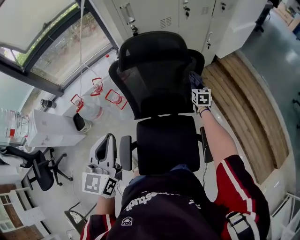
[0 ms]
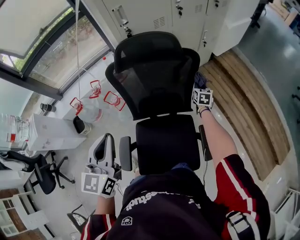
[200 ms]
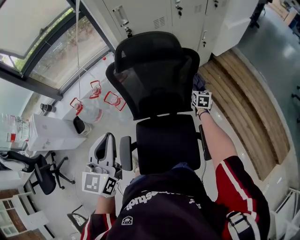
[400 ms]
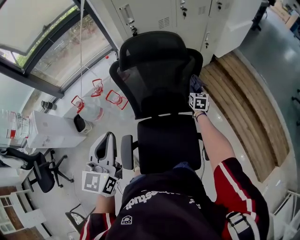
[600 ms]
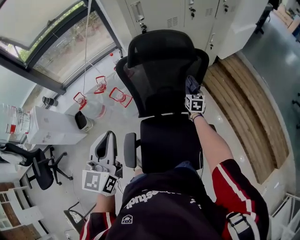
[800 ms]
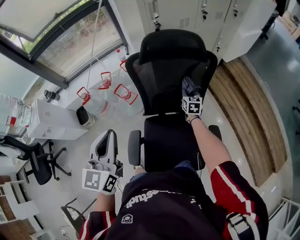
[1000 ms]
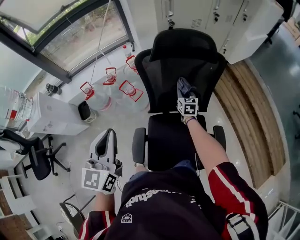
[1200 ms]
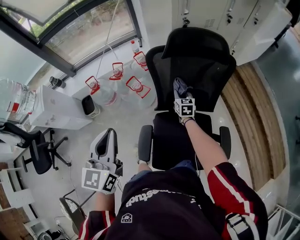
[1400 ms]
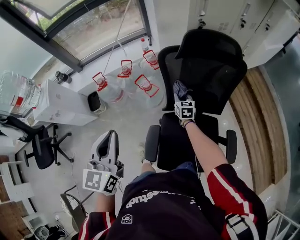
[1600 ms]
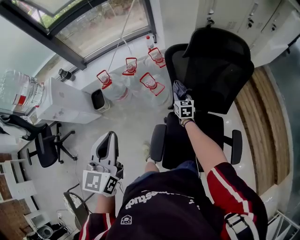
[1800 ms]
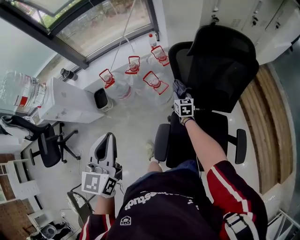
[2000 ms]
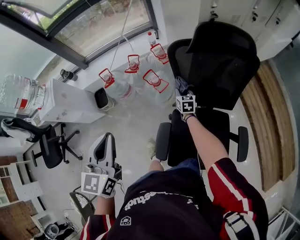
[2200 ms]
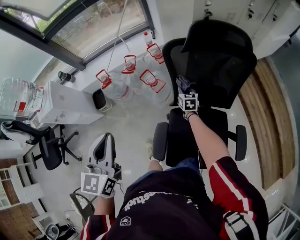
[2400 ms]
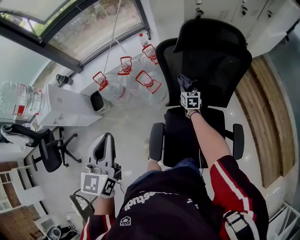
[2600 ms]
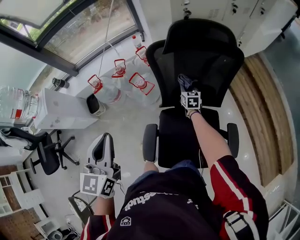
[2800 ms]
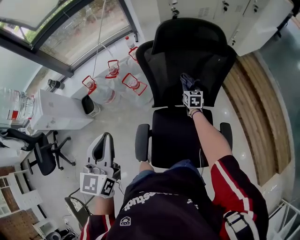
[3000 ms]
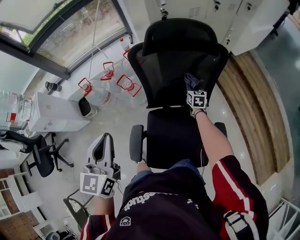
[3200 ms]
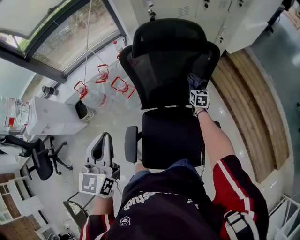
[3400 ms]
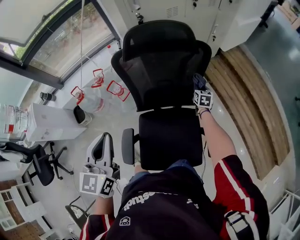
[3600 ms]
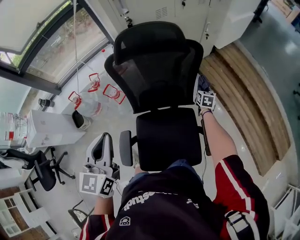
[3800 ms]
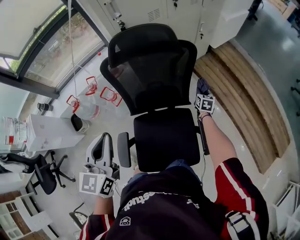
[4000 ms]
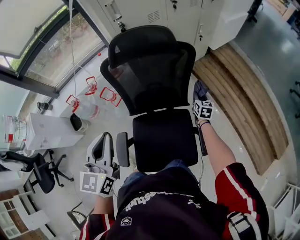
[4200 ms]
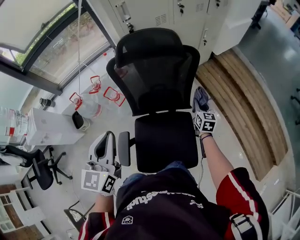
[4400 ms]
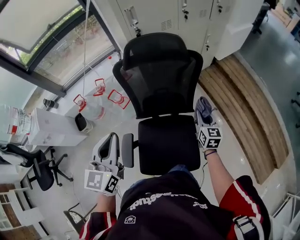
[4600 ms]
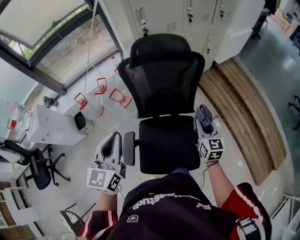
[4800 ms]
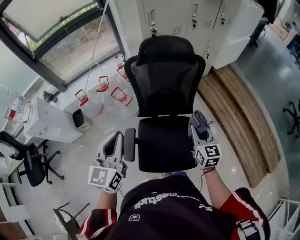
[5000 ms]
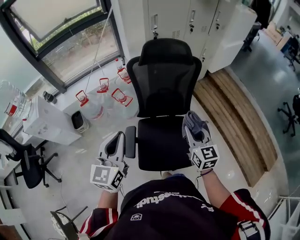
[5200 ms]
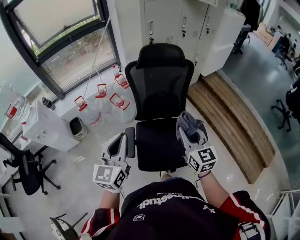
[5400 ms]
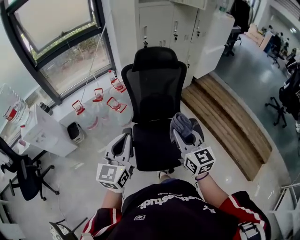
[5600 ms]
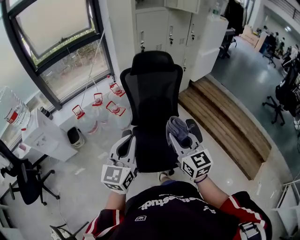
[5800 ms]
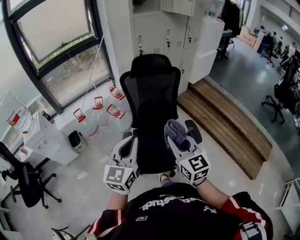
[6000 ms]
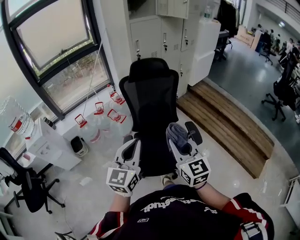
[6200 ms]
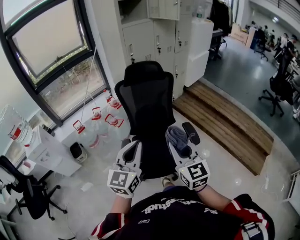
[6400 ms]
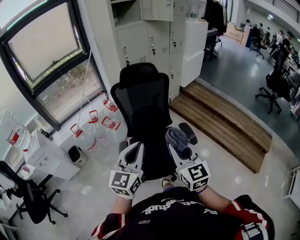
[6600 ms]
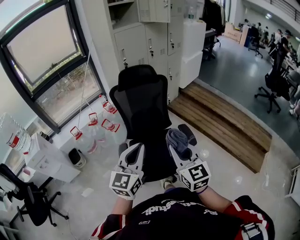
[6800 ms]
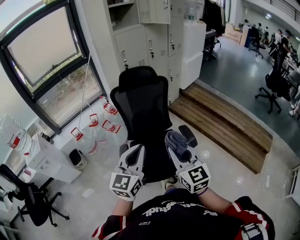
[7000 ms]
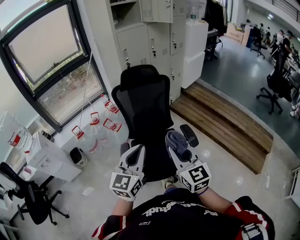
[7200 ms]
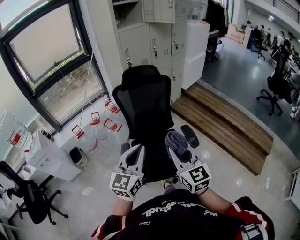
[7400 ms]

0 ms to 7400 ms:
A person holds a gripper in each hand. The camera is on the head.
0 ms to 1400 ms: The left gripper goes about 15 cm to the left; the right gripper is displaced to the left by some 30 cm.
1400 ms to 3000 ms: The right gripper travels to the right and downward by about 10 cm. The left gripper goes to the left and returns, some 10 cm each way.
3000 ms to 4400 ms: The right gripper is displaced to the right and backward by approximately 25 cm; the left gripper is displaced to the right by about 15 cm.
4400 ms to 6000 ms: The right gripper shifts approximately 70 cm backward, upward and to the left, and rotates roughly 30 degrees. The left gripper goes roughly 35 cm backward.
6000 ms to 7400 ms: The right gripper shifts by about 5 cm; the left gripper heads to the right, covering some 5 cm.

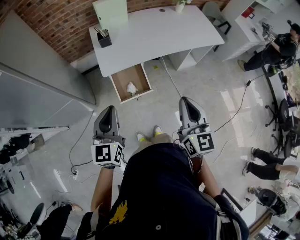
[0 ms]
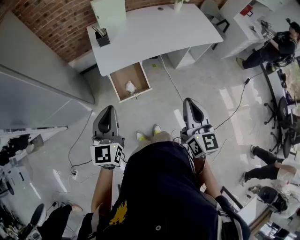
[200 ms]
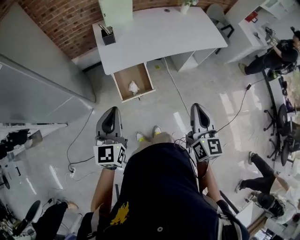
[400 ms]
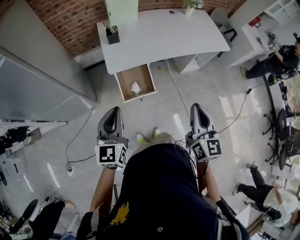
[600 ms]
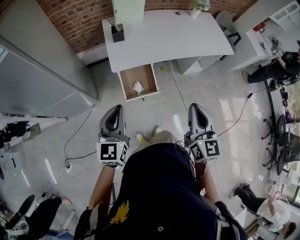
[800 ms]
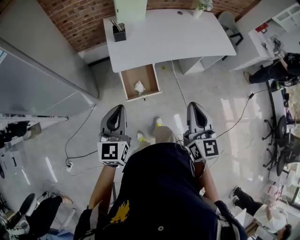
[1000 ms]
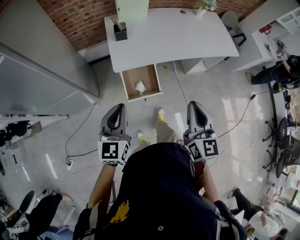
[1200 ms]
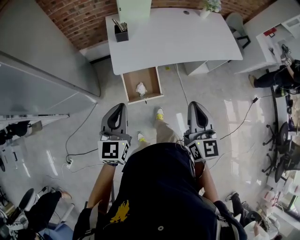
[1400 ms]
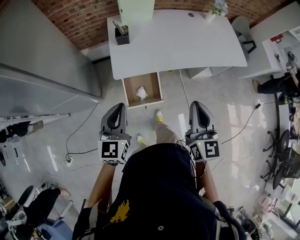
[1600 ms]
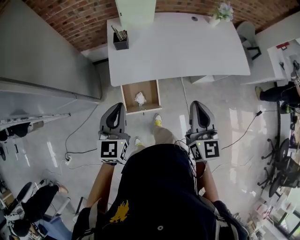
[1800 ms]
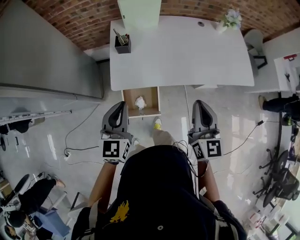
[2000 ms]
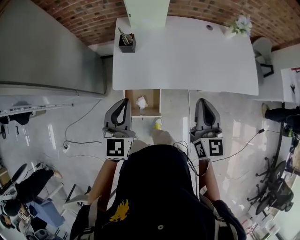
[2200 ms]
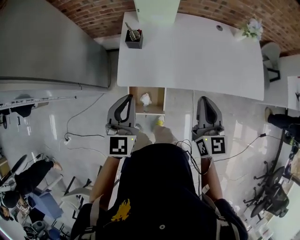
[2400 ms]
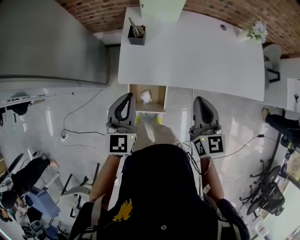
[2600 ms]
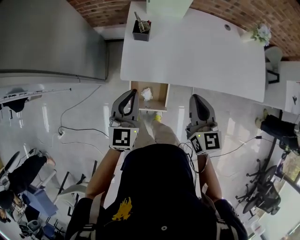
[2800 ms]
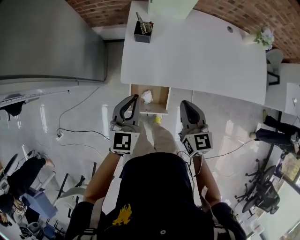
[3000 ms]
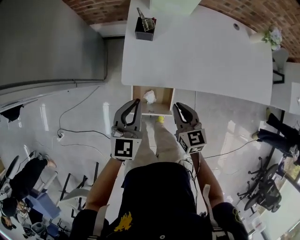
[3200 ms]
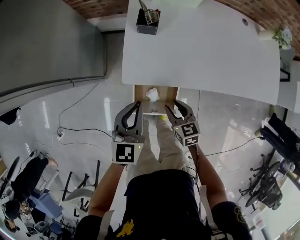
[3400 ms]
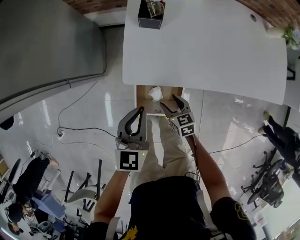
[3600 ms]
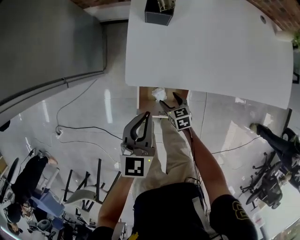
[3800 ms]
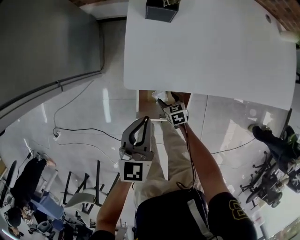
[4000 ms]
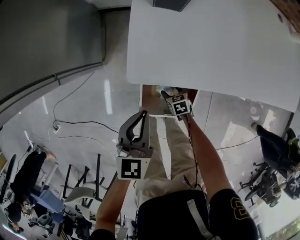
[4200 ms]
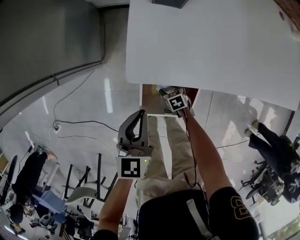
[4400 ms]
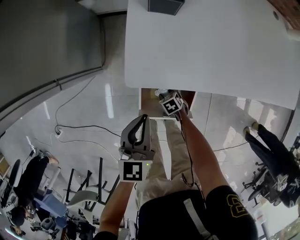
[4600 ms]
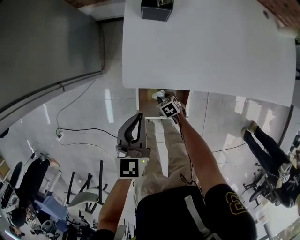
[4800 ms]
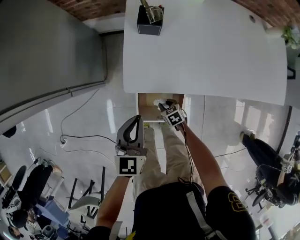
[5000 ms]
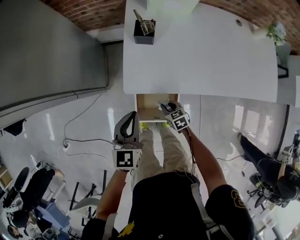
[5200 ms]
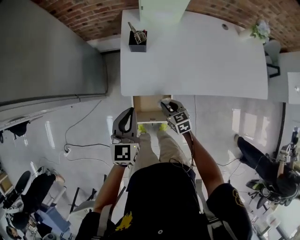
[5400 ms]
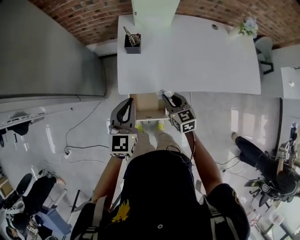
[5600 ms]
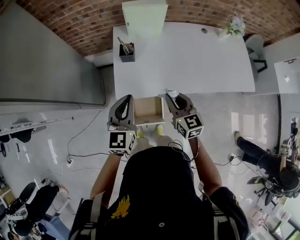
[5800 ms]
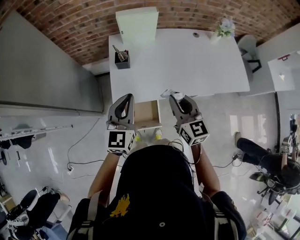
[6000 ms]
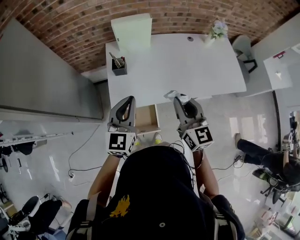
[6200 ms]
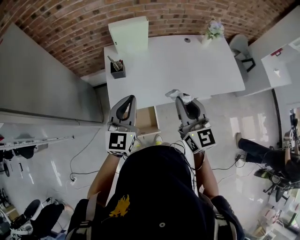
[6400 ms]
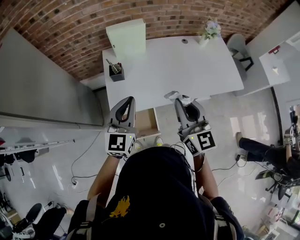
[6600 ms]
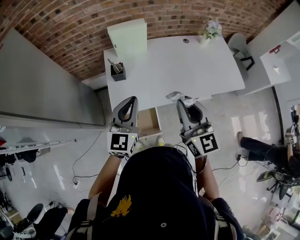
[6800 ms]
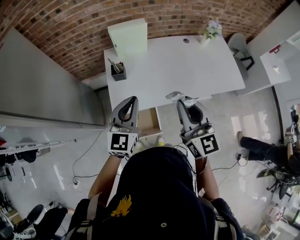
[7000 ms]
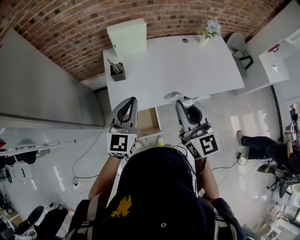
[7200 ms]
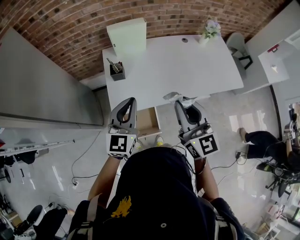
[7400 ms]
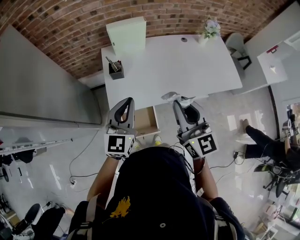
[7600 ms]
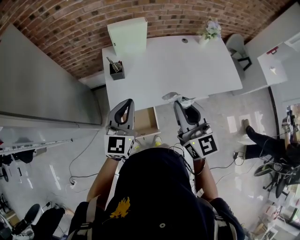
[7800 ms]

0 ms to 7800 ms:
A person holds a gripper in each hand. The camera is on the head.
0 ms to 1600 ms: Both grippers move forward, roughly 15 cm.
1600 ms to 3200 ms: The right gripper is displaced downward and forward by approximately 35 cm, and swivels some 40 degrees; the left gripper goes roughly 20 cm forward and downward.
3200 ms to 4600 ms: The right gripper shifts some 50 cm downward, angles its fingers downward, by about 40 degrees, and opens its fingers, while the left gripper moves downward, roughly 20 cm.
4600 ms to 6200 ms: The right gripper travels upward by about 70 cm, and points its fingers about 60 degrees further upward; the left gripper goes about 35 cm upward, and rotates about 30 degrees.
6200 ms to 7800 ms: The right gripper goes about 10 cm upward.

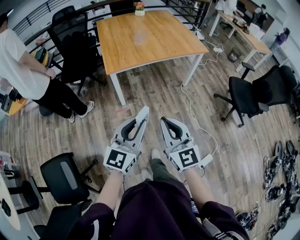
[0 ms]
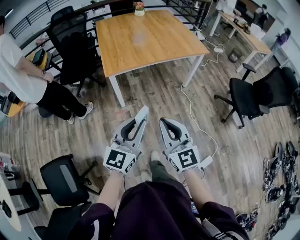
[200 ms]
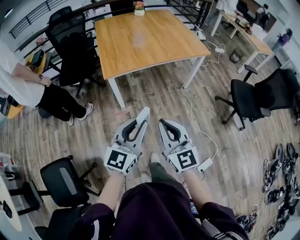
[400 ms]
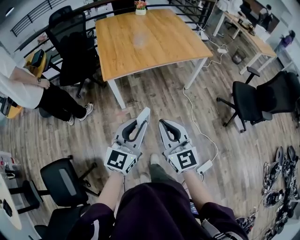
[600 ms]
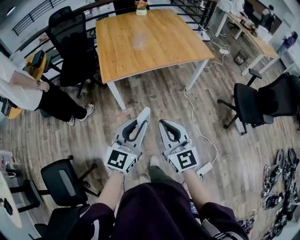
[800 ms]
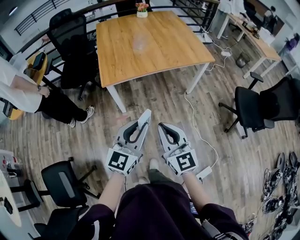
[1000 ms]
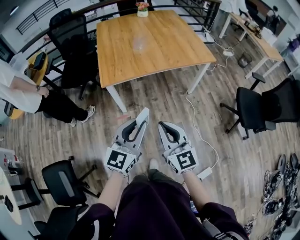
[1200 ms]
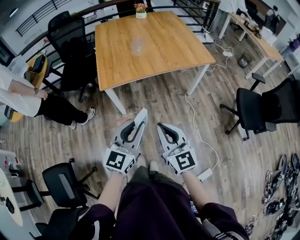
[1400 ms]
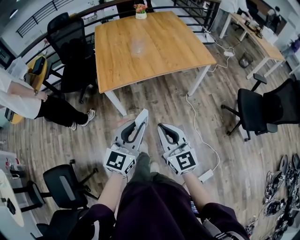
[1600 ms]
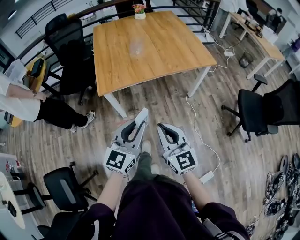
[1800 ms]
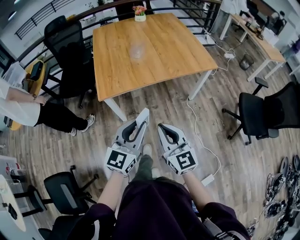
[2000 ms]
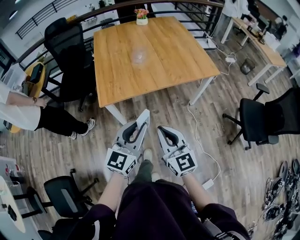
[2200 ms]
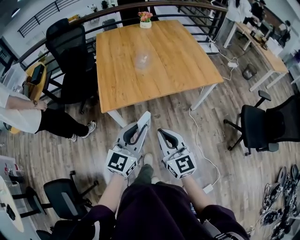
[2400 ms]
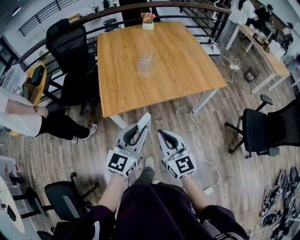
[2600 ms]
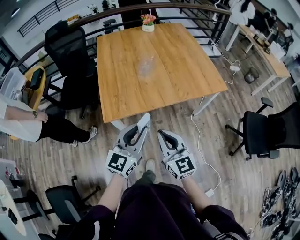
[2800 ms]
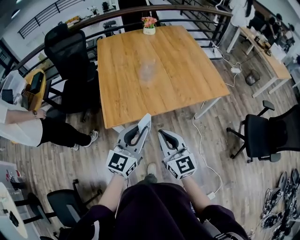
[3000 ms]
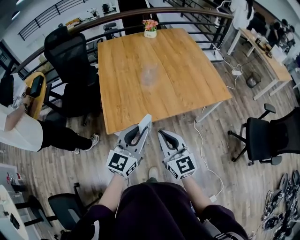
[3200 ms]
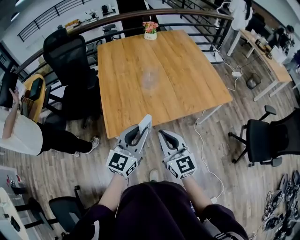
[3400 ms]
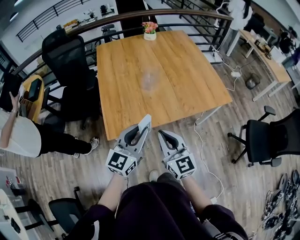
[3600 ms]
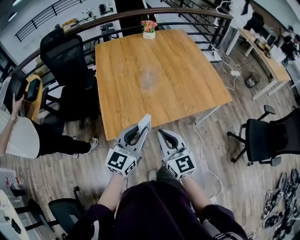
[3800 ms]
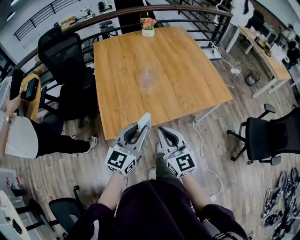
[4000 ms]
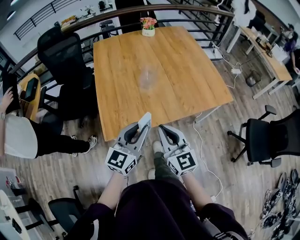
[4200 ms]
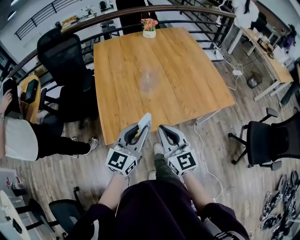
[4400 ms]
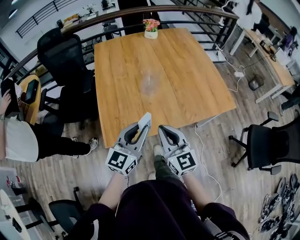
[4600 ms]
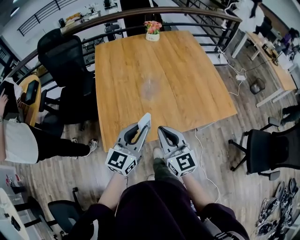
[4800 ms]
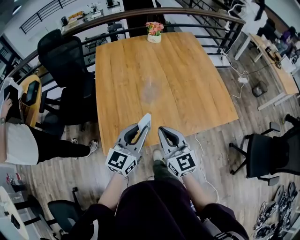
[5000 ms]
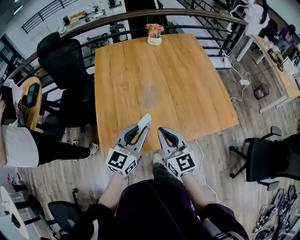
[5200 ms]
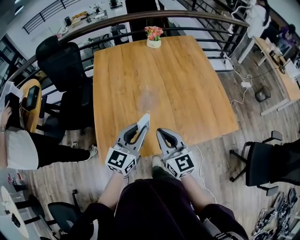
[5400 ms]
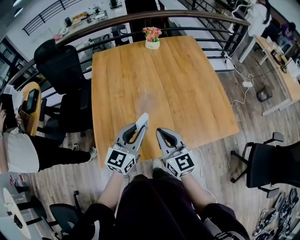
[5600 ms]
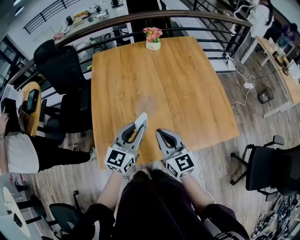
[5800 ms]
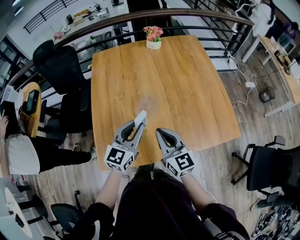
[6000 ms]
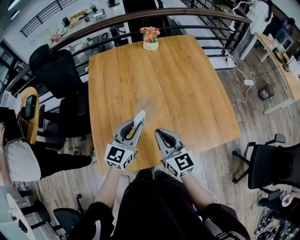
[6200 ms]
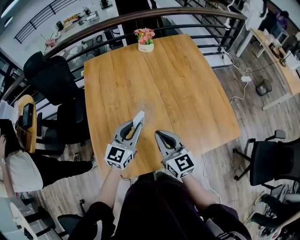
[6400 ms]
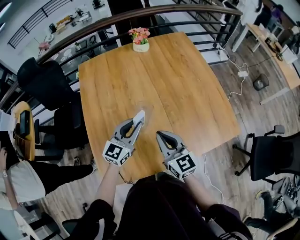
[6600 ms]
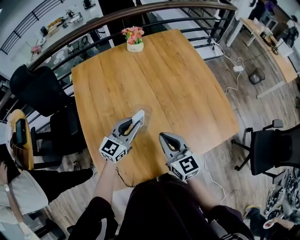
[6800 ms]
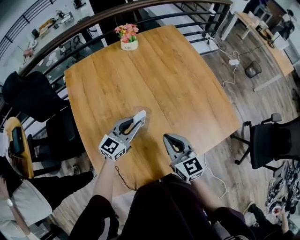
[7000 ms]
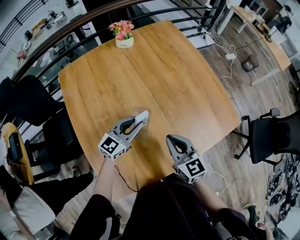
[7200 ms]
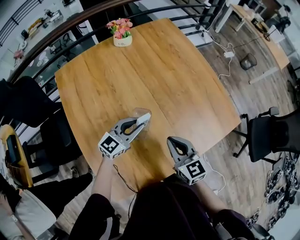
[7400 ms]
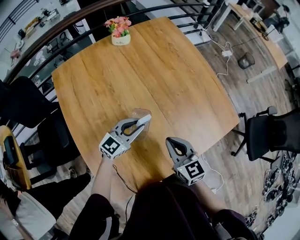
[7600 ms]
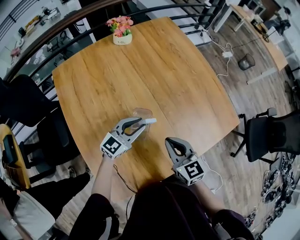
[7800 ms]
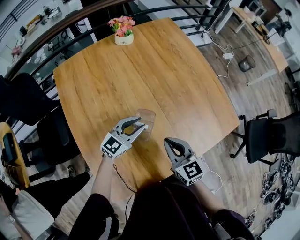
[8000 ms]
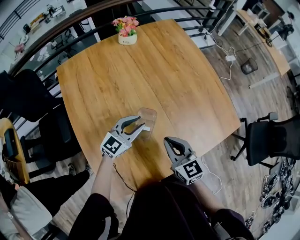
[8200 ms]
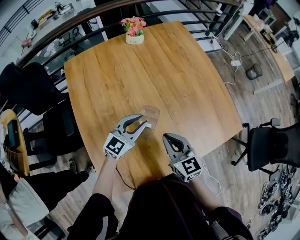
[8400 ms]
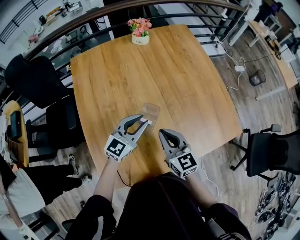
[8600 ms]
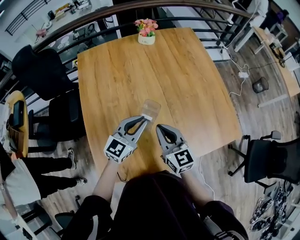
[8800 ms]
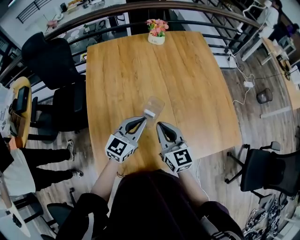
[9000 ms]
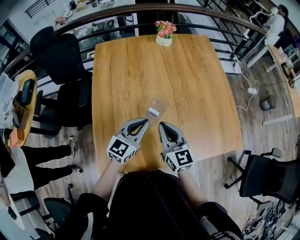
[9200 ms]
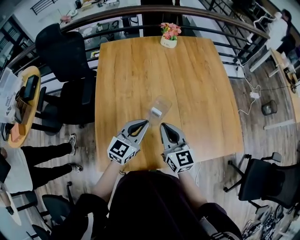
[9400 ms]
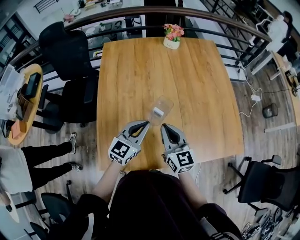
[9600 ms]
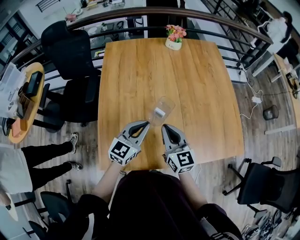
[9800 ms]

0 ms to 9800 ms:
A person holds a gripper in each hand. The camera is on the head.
0 ms to 1400 ms: The two grippers go some 20 cm forward and to the right.
1400 ms to 2800 ms: Both grippers move forward, some 25 cm.
2800 ms to 4200 ms: The two grippers go about 15 cm forward.
4200 ms to 5600 ms: The grippers both shift forward by some 25 cm.
5600 ms to 7000 ms: Both grippers move forward and downward, approximately 20 cm. The left gripper rotates about 30 degrees.
7000 ms to 8400 ms: The grippers stay close to where they were, moving slightly.
8400 ms to 9800 ms: The left gripper travels backward by roughly 15 cm, rotates approximately 30 degrees, and closes up. The right gripper is displaced backward by approximately 5 cm.
